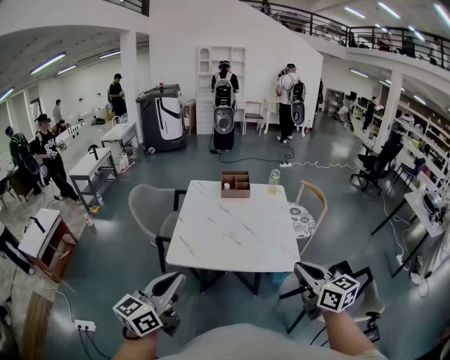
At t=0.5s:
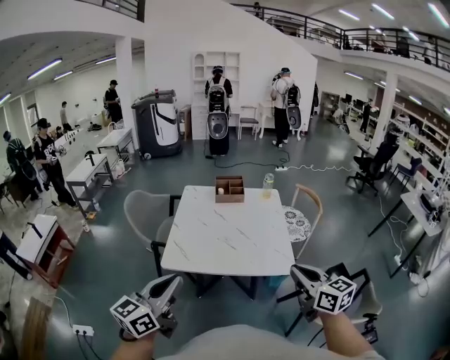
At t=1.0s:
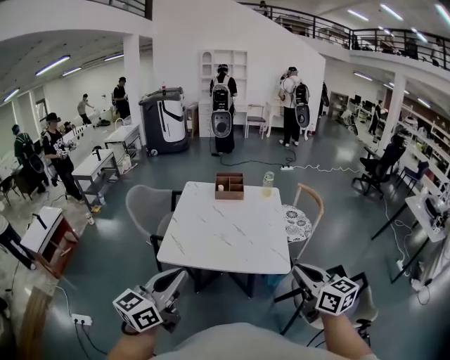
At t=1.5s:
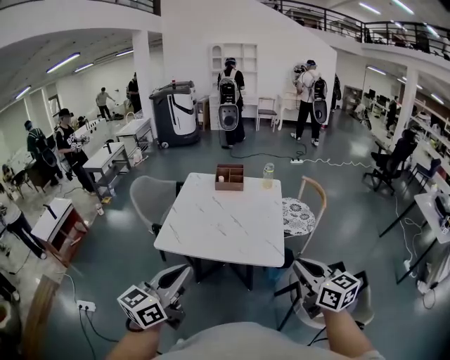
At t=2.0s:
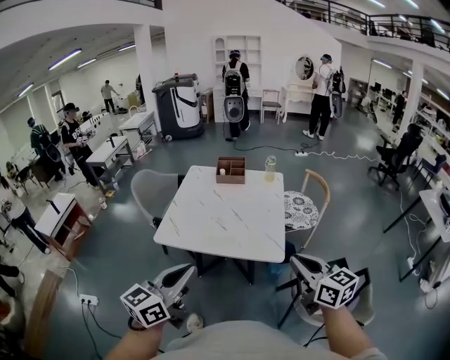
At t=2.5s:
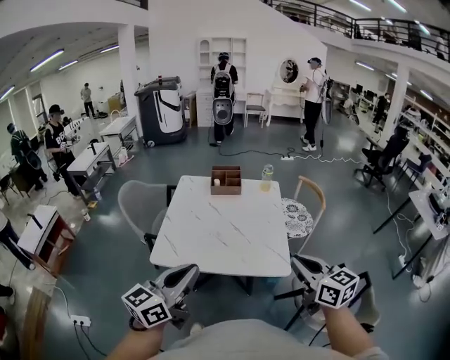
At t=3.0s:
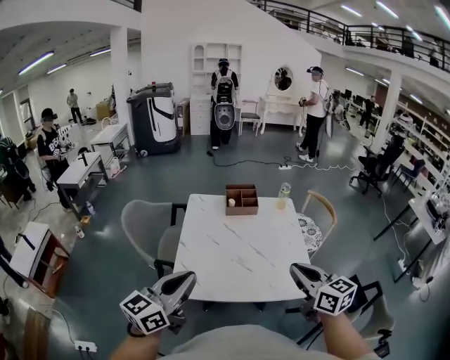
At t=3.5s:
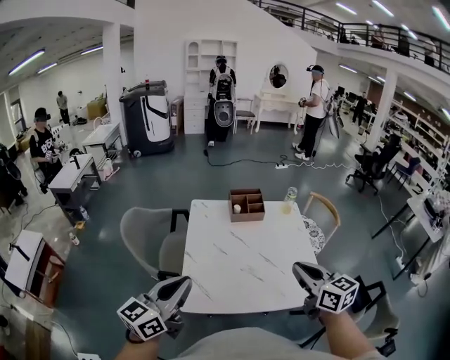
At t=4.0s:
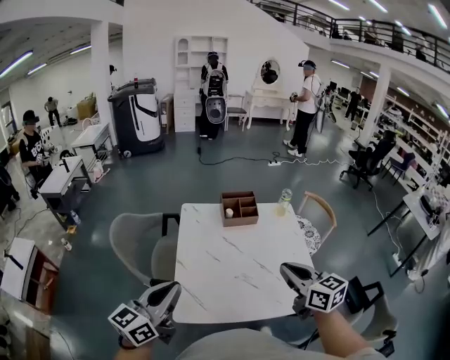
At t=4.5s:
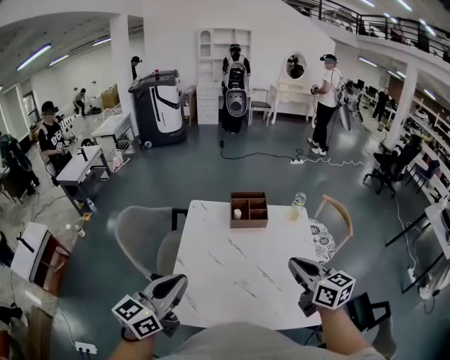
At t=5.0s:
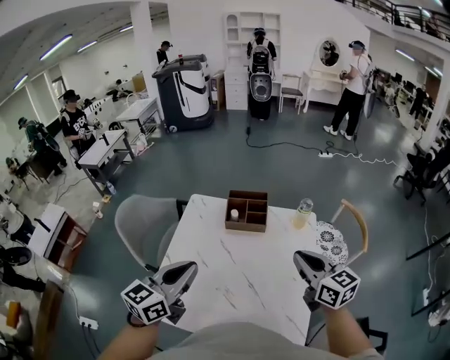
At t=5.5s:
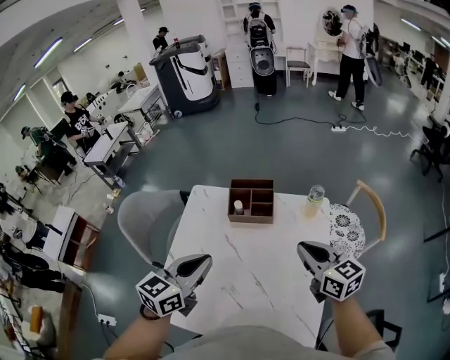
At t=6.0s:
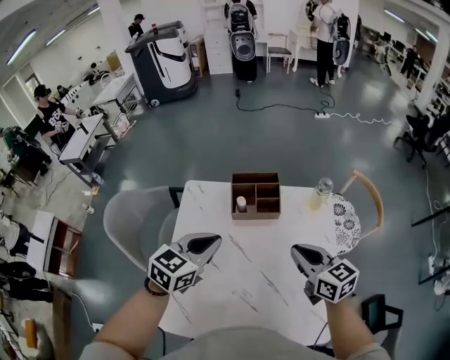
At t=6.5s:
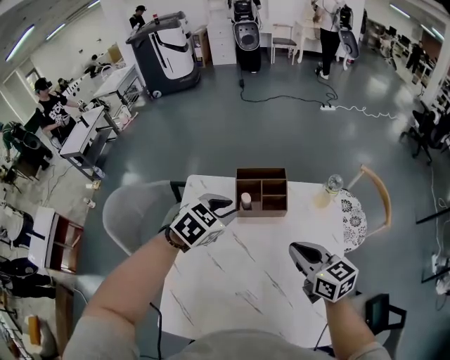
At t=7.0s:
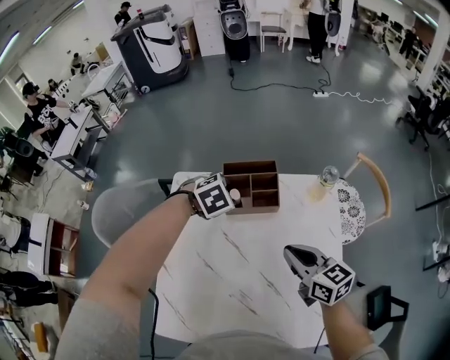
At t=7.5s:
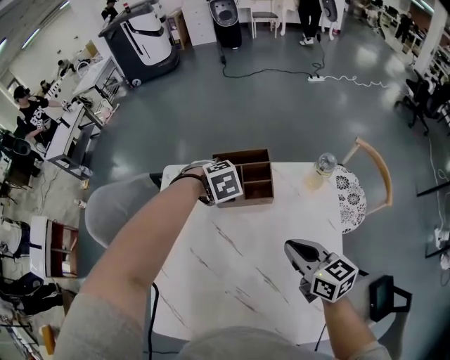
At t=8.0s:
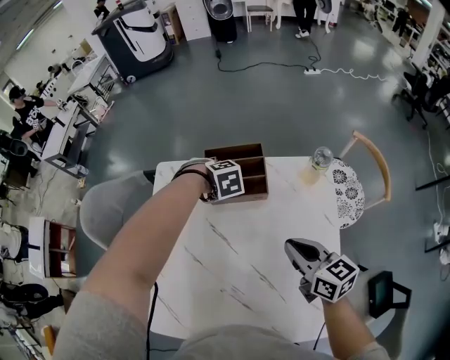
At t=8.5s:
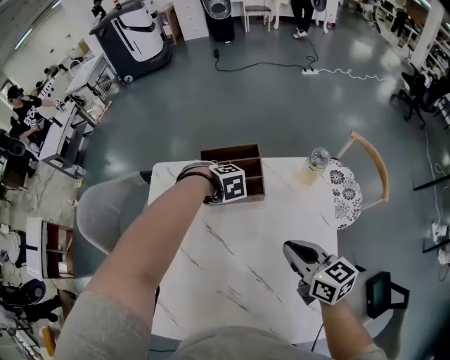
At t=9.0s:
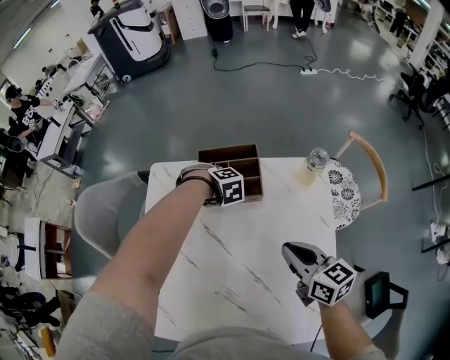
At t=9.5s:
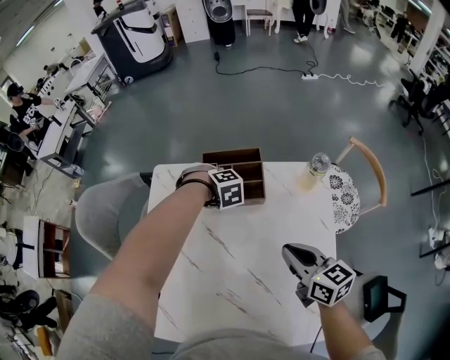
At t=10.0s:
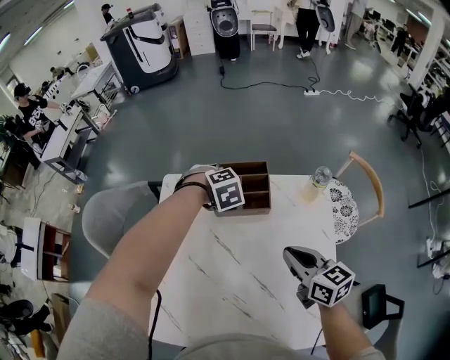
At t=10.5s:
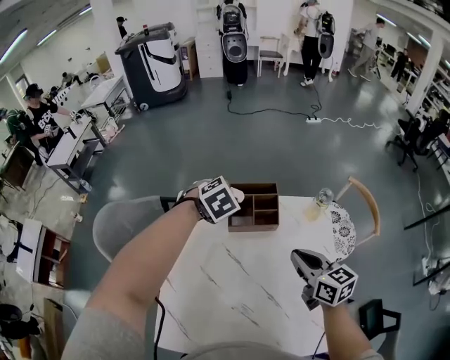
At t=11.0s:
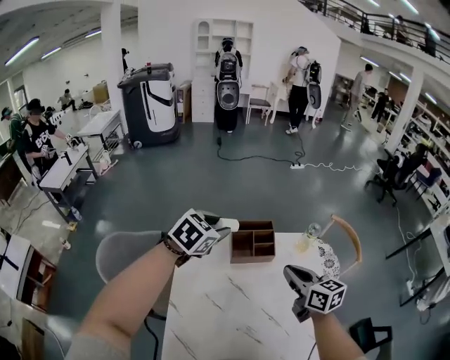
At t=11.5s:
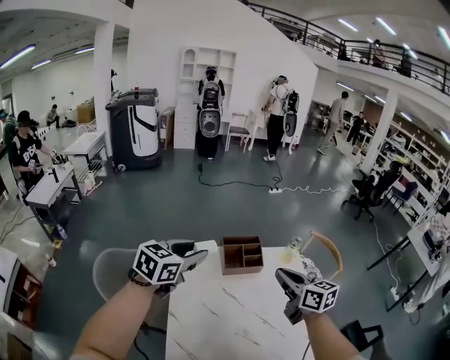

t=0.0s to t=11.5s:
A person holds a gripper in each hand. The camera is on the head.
t=0.0s to t=2.0s: Both grippers move to the right, about 15 cm.
t=2.0s to t=4.0s: Both grippers move to the left and forward, some 40 cm.
t=4.0s to t=6.0s: The left gripper heads forward and to the right, covering roughly 35 cm, and rotates about 30 degrees. Meanwhile the right gripper heads forward and downward, covering some 25 cm.
t=6.0s to t=7.5s: The right gripper goes about 5 cm downward. The left gripper changes place by some 25 cm, tips its fingers downward by approximately 50 degrees, and opens.
t=7.5s to t=9.5s: The left gripper shifts roughly 5 cm downward, and closes.
t=9.5s to t=11.5s: The right gripper moves upward, roughly 20 cm. Meanwhile the left gripper moves upward, roughly 35 cm, and tilts its fingers approximately 50 degrees upward.

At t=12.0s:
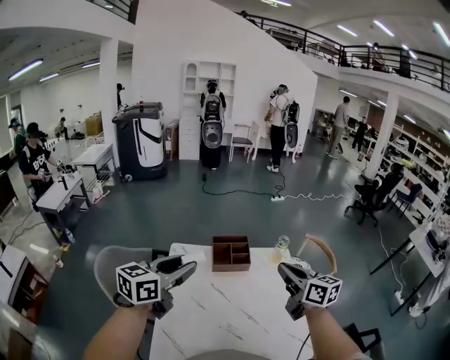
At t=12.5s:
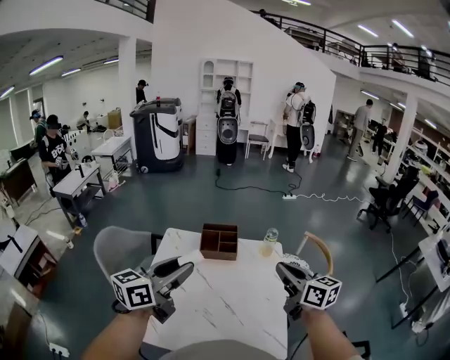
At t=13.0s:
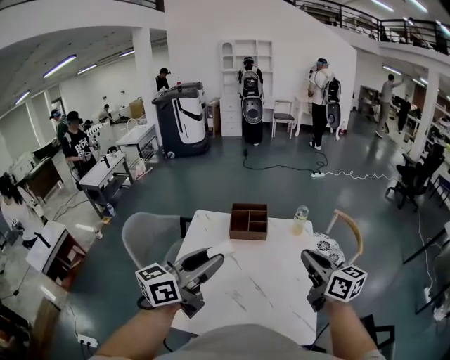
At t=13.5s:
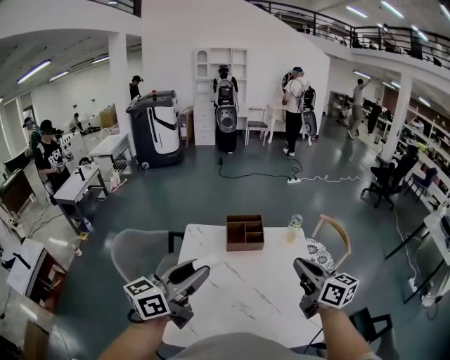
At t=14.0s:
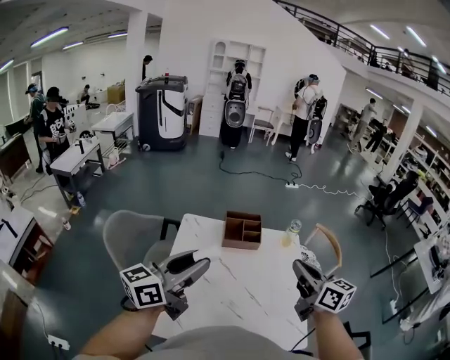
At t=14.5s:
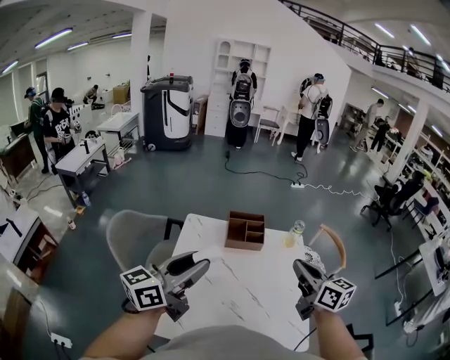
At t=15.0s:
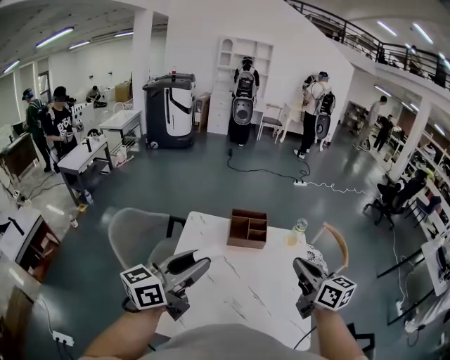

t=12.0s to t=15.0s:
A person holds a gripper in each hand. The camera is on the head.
t=12.0s to t=13.5s: The grippers both shift backward by about 10 cm. The right gripper goes to the right and returns, some 10 cm each way, while the left gripper moves about 10 cm to the right and comes back.
t=13.5s to t=15.0s: There are only small adjustments of the grippers.

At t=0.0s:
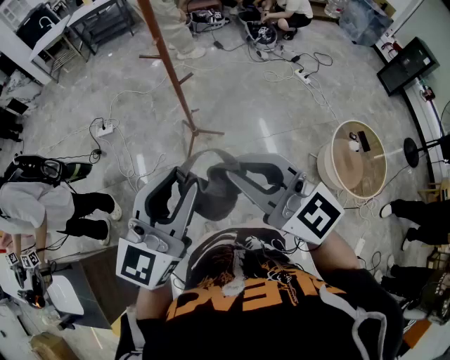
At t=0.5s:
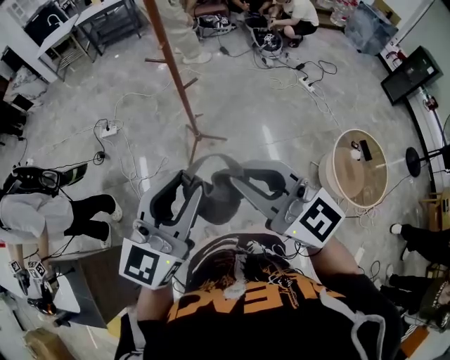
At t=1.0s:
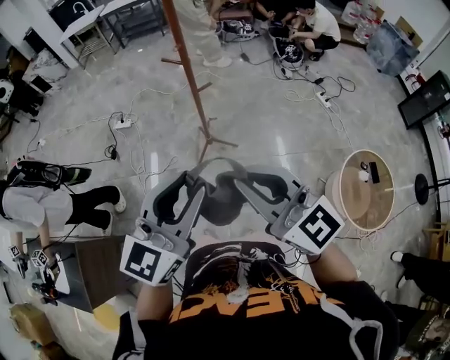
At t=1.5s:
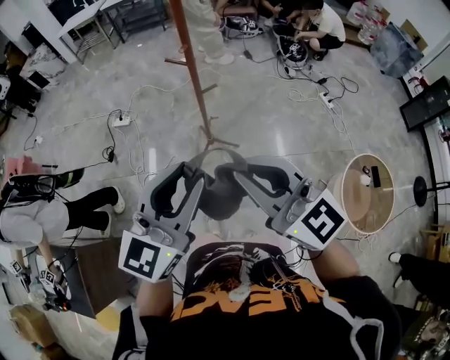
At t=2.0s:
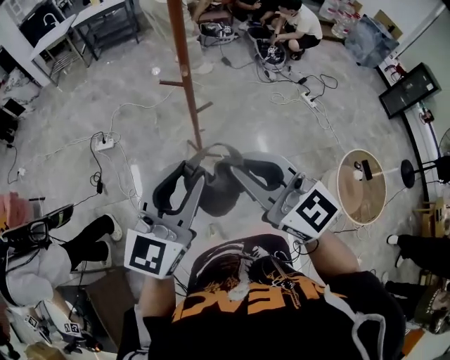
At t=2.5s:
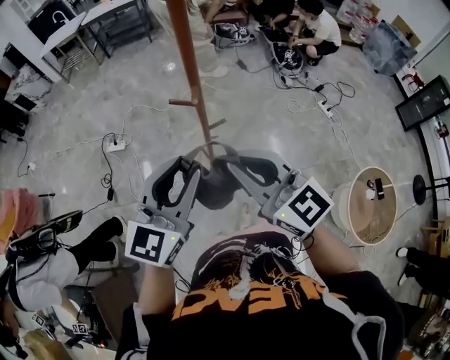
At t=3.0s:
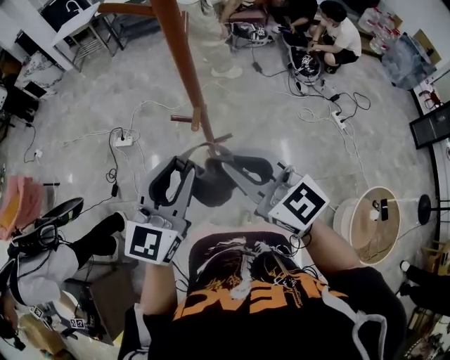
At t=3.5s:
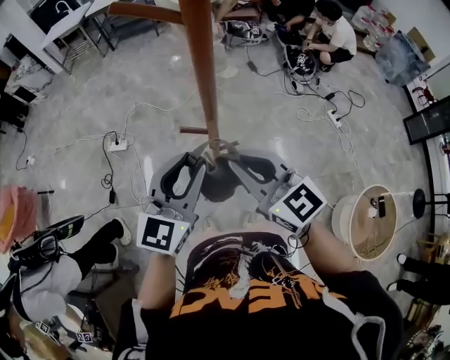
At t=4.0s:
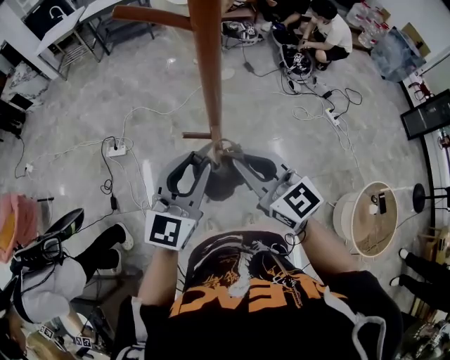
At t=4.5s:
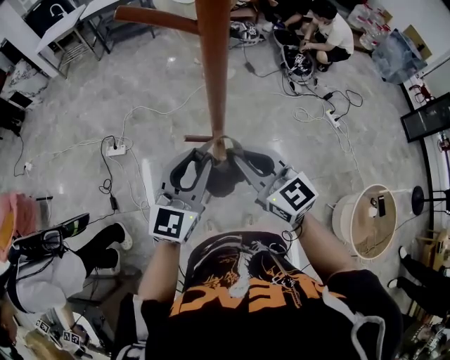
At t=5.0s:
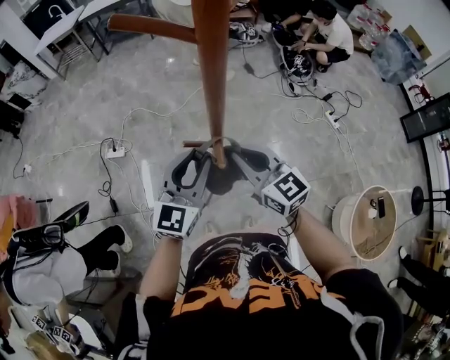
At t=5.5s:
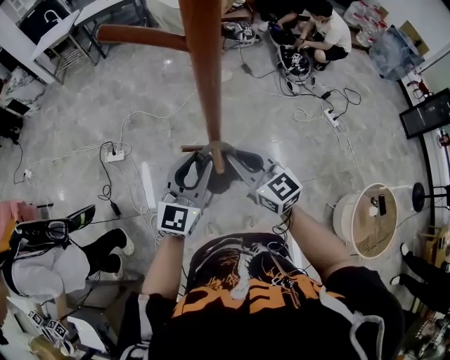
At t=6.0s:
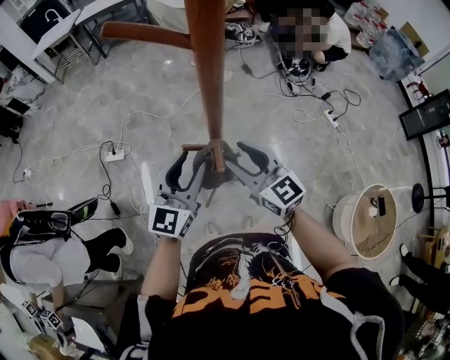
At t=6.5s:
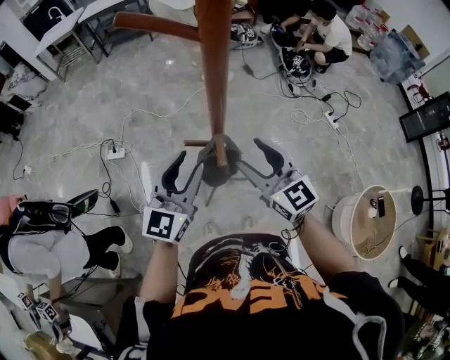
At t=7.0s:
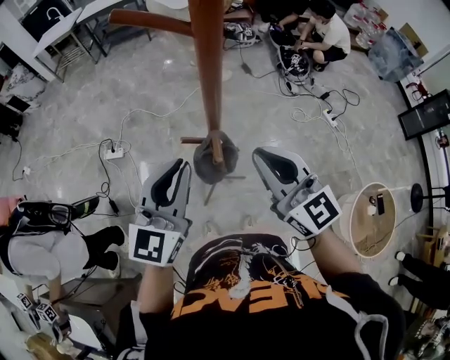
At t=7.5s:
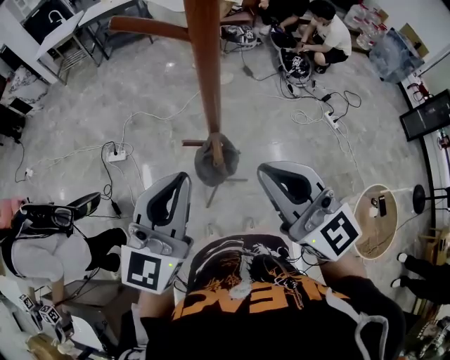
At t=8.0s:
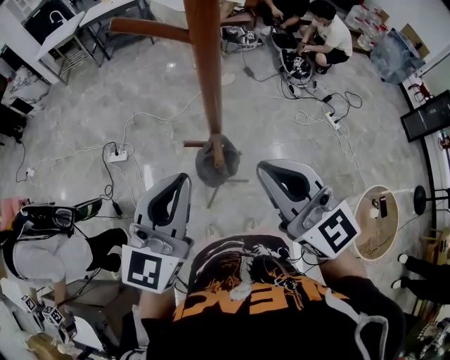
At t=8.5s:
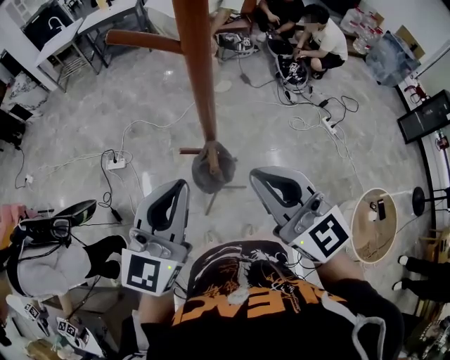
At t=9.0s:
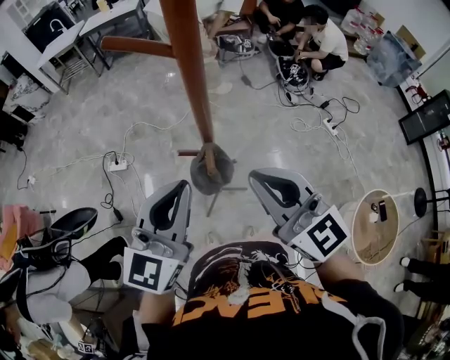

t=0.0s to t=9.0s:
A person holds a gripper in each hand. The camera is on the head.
t=0.0s to t=2.0s: The two grippers go approximately 20 cm forward.
t=2.0s to t=4.5s: Both grippers move forward, roughly 35 cm.
t=4.5s to t=7.0s: The two grippers go some 5 cm upward. The right gripper opens, then closes again.
t=7.0s to t=9.0s: Both grippers move upward, roughly 5 cm.

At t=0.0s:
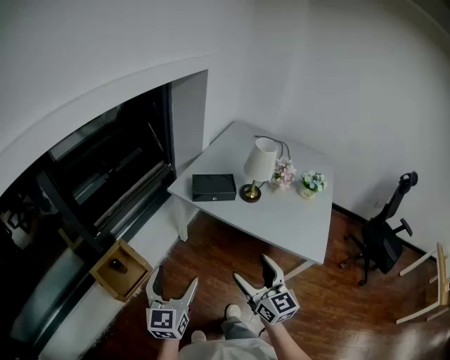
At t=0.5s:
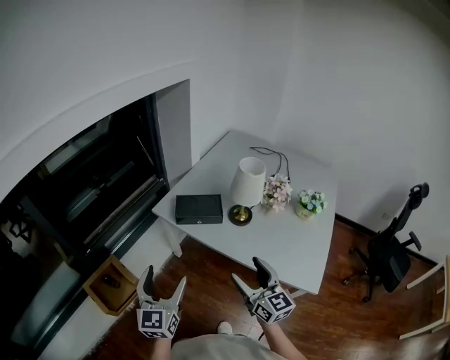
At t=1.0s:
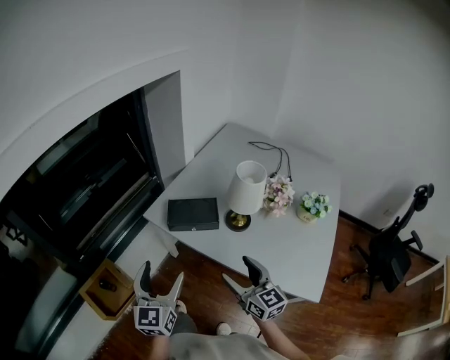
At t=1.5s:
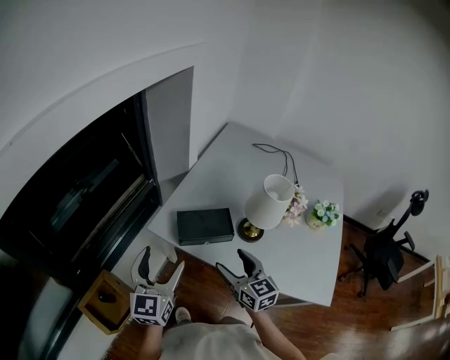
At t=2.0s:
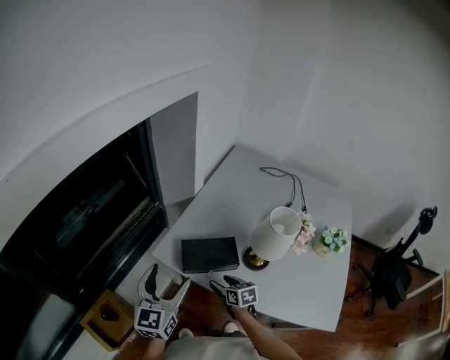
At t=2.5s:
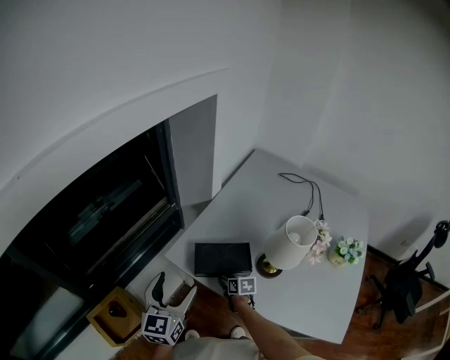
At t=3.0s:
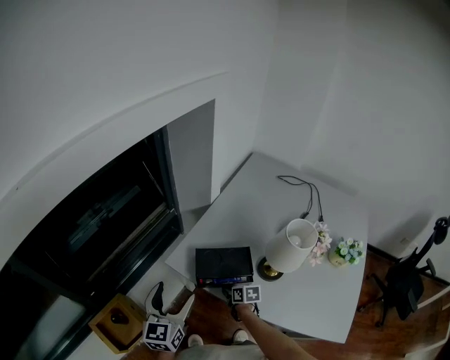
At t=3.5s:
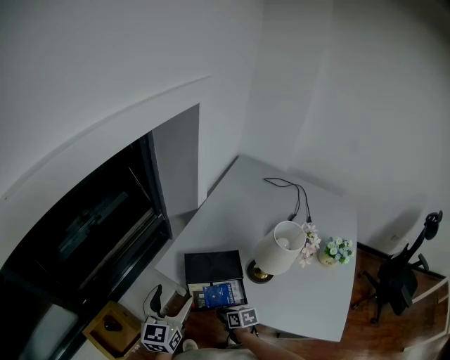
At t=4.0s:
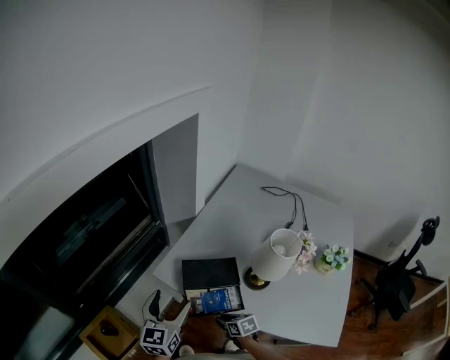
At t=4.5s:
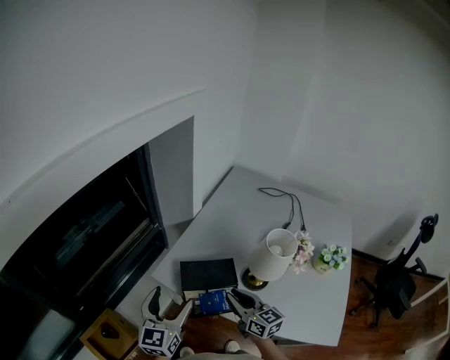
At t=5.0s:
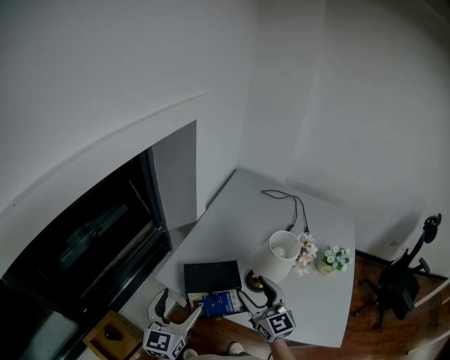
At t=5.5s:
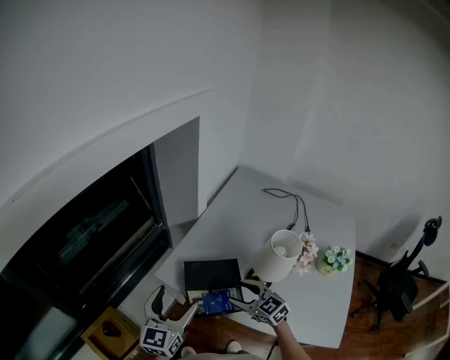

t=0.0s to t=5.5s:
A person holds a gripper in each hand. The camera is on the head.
t=0.0s to t=2.0s: The right gripper travels forward and downward by some 50 cm, and tips its fingers downward by some 40 degrees, while the left gripper is displaced forward by approximately 40 cm.
t=2.0s to t=3.5s: The right gripper moves downward and backward, some 10 cm, and closes.
t=3.5s to t=5.5s: The right gripper goes approximately 20 cm upward, rotates around the line of its fingers by approximately 50 degrees, counterclockwise from behind, and opens its fingers.
